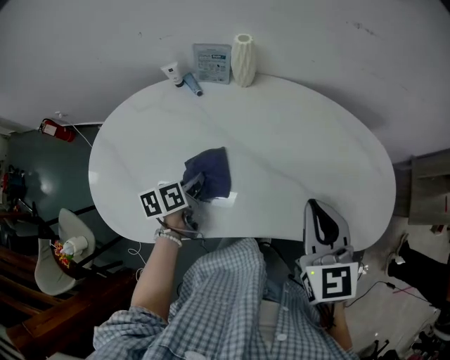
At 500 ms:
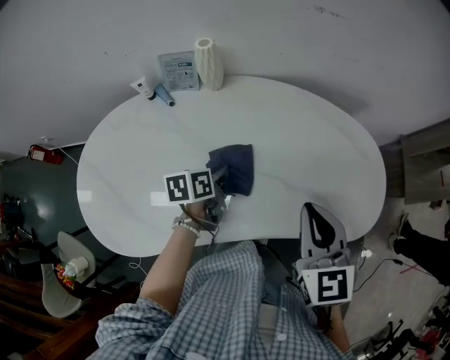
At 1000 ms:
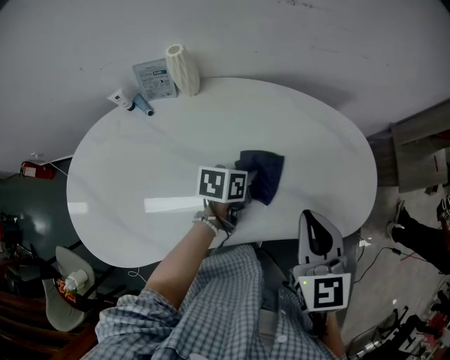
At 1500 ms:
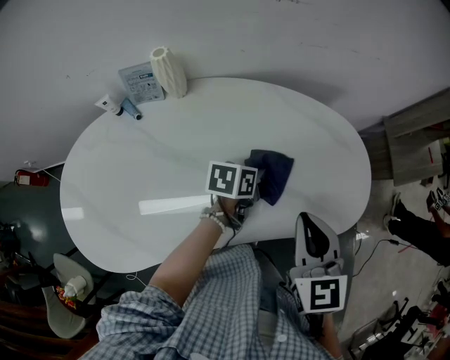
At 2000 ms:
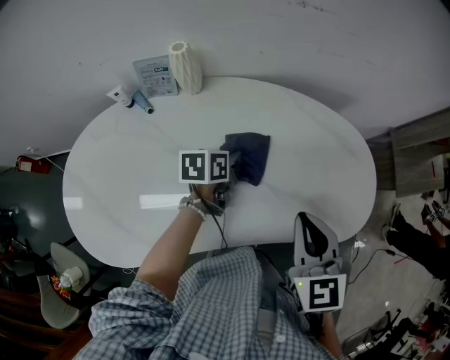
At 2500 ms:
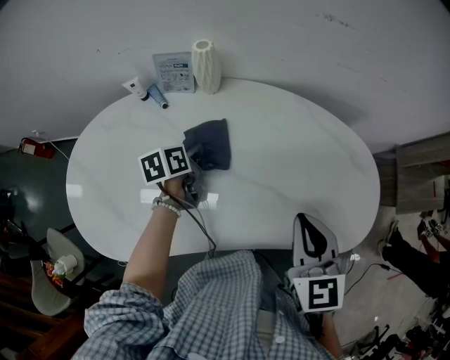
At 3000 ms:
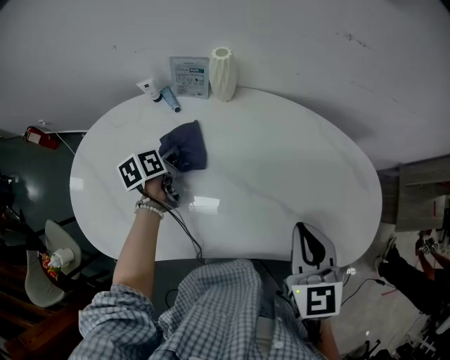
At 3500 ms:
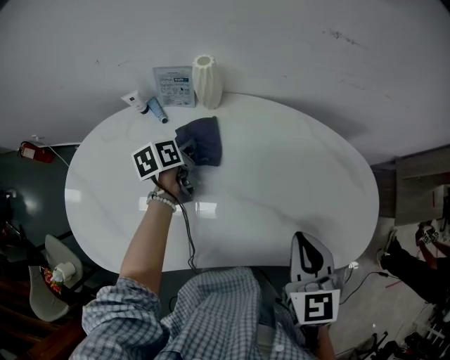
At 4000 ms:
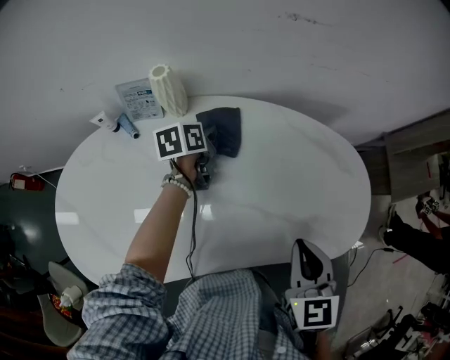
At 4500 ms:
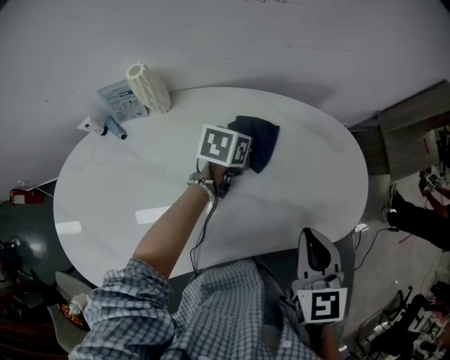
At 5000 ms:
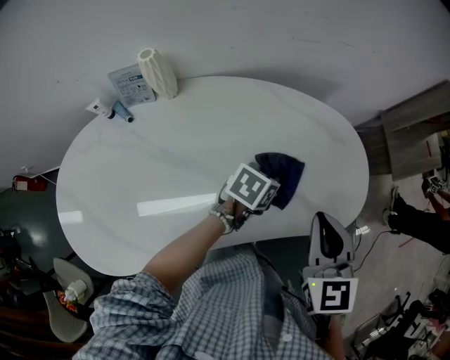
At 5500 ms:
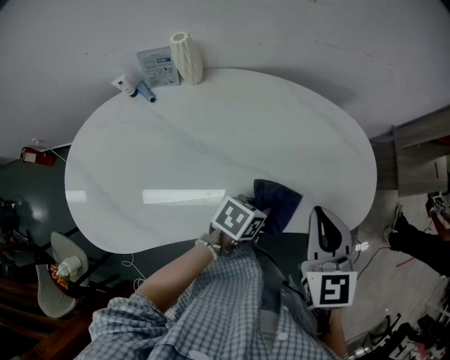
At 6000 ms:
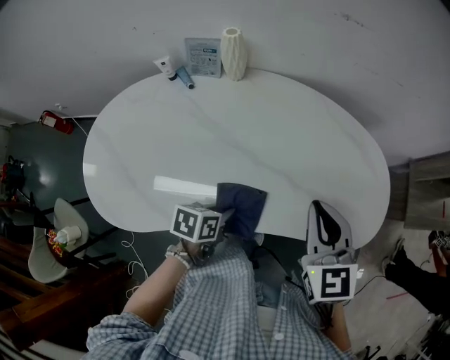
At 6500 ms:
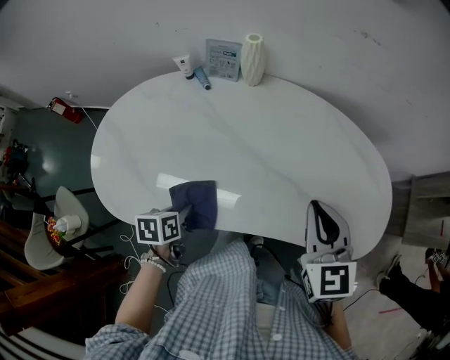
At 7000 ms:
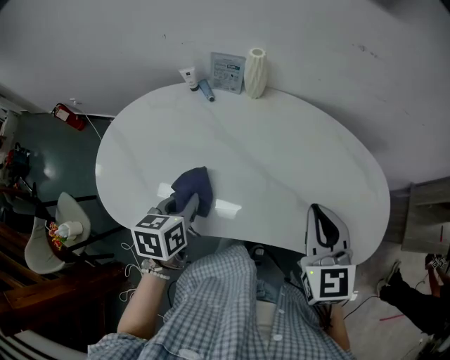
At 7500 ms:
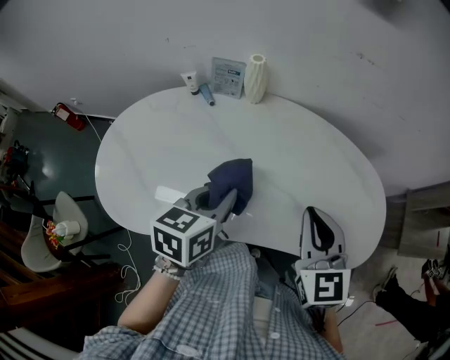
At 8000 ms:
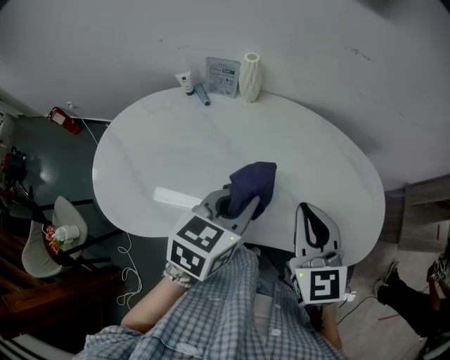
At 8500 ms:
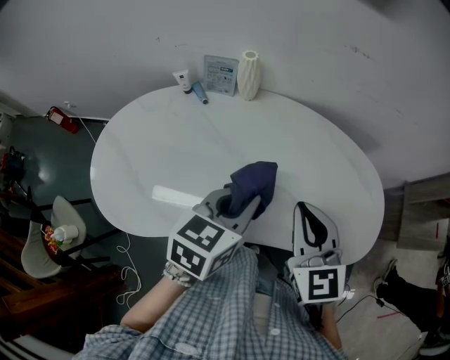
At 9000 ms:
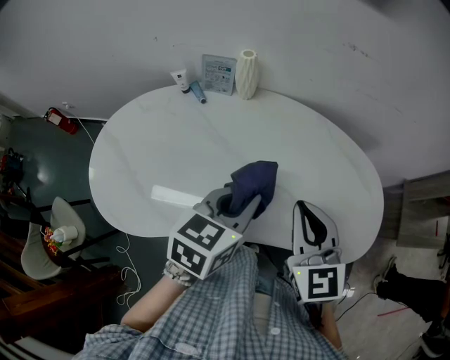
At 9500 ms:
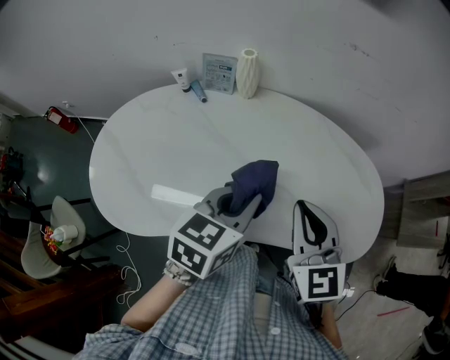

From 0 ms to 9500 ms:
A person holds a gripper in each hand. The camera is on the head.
From 0 ms to 2000 ms: The left gripper moves approximately 25 cm, and changes its angle by some 30 degrees. Meanwhile the right gripper moves about 5 cm.
From 2000 ms to 4000 ms: The left gripper goes some 15 cm forward, and moves about 25 cm to the left and comes back.
From 4000 ms to 5500 ms: The left gripper travels to the right and backward by some 35 cm, and changes its angle by approximately 40 degrees.
From 5500 ms to 7500 ms: The right gripper moves approximately 10 cm. Meanwhile the left gripper shifts by approximately 25 cm, and swivels roughly 50 degrees.
From 7500 ms to 9500 ms: The left gripper is displaced to the right by approximately 5 cm.

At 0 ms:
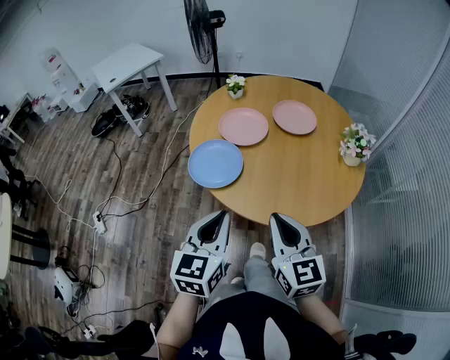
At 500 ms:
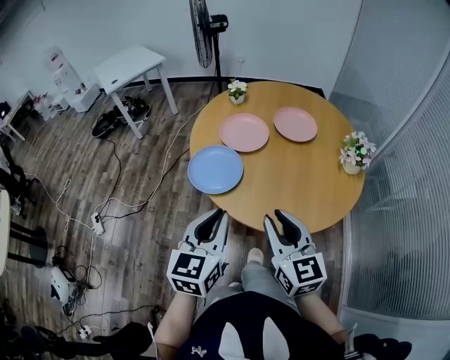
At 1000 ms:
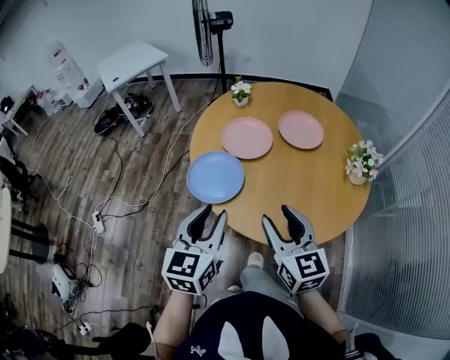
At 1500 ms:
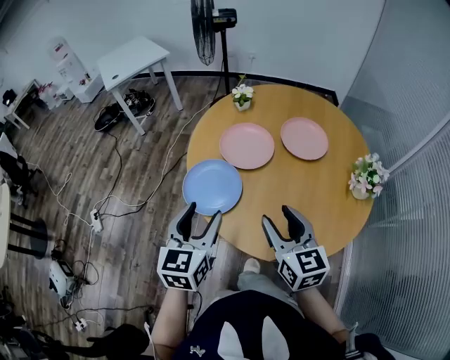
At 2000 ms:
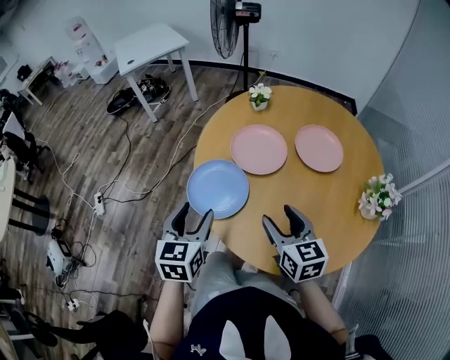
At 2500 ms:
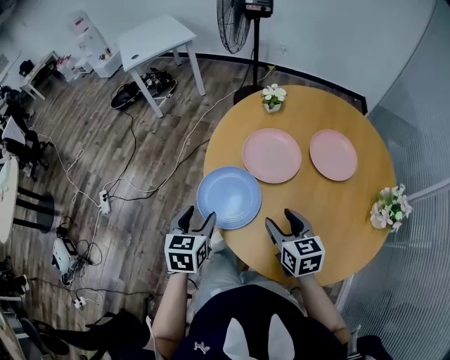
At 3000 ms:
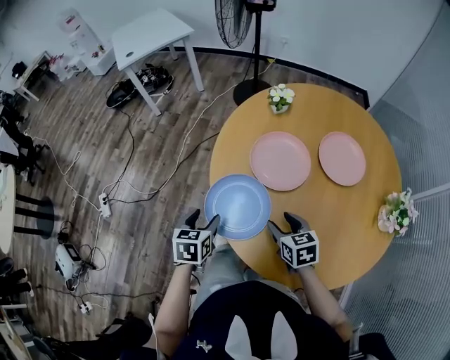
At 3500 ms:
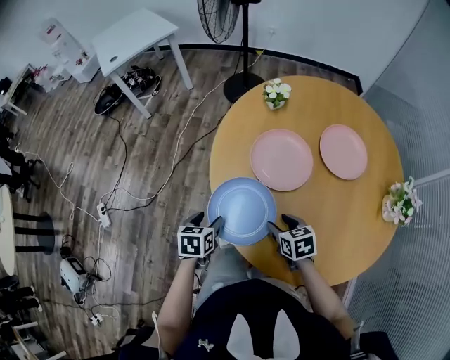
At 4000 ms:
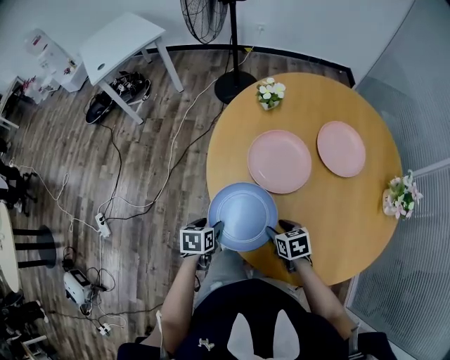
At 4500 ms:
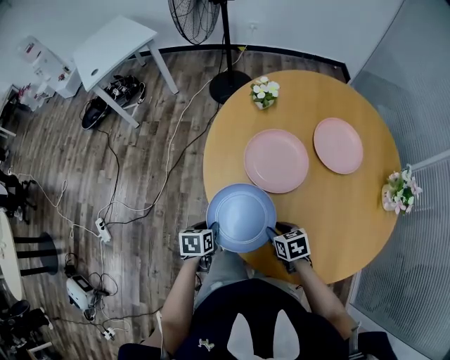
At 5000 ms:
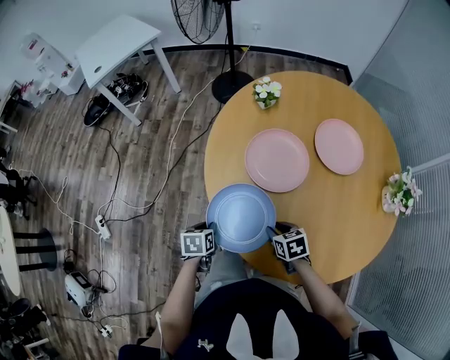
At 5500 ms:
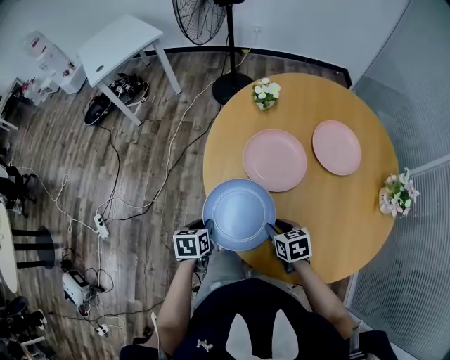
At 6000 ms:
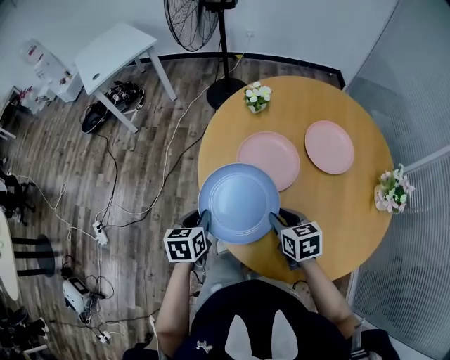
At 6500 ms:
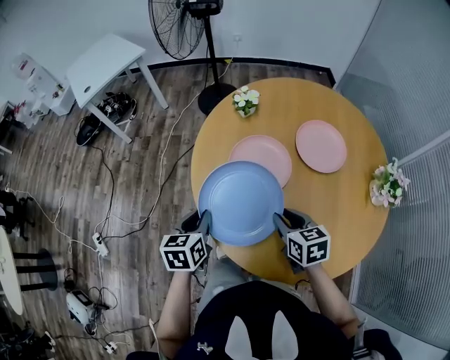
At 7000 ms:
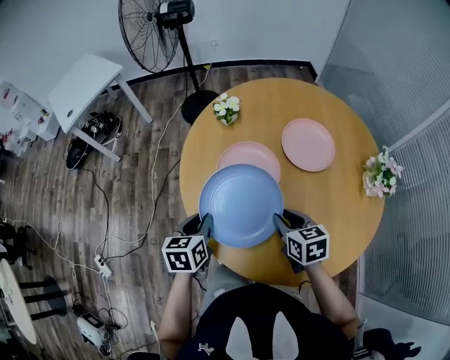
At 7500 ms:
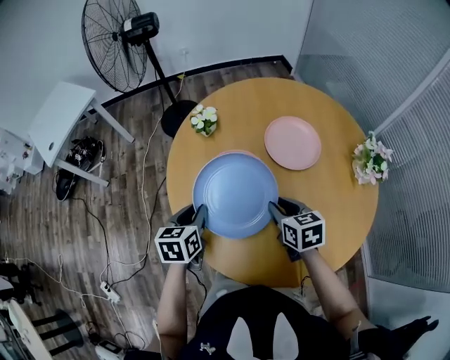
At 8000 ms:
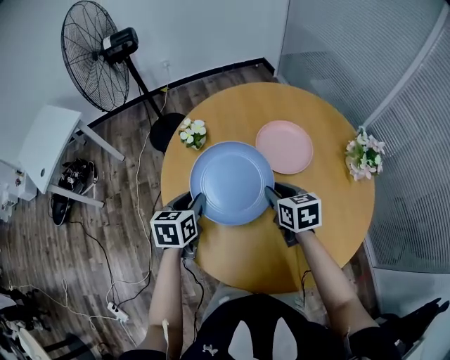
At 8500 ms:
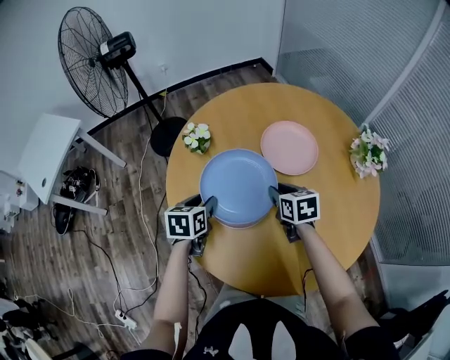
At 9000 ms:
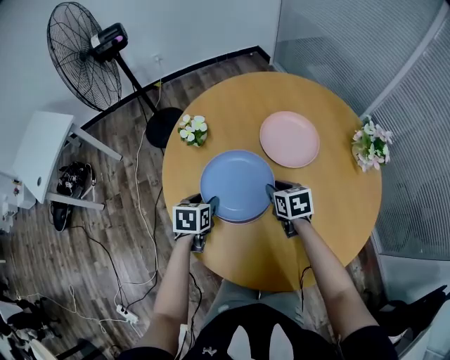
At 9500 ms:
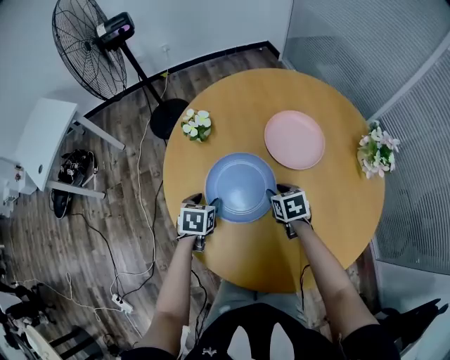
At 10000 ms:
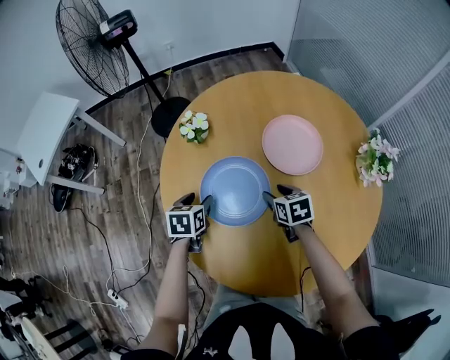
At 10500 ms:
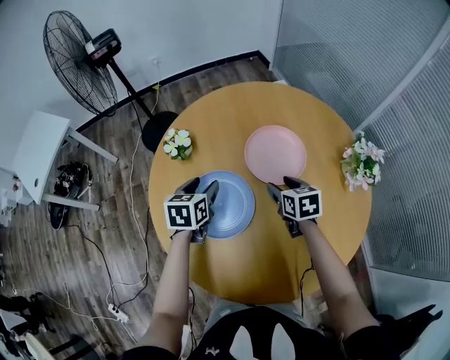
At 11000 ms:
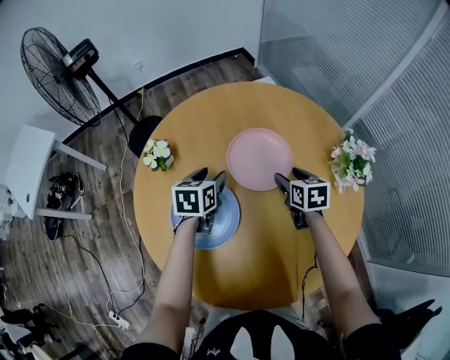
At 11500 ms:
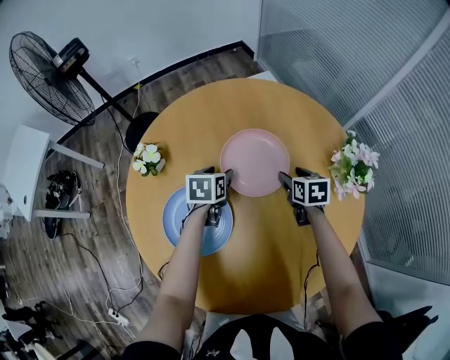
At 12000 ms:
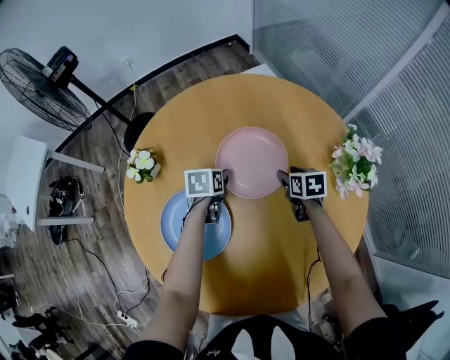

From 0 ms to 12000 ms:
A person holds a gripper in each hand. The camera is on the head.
From 0 ms to 2000 ms: Both grippers travel together forward, roughly 20 cm. The right gripper swivels some 20 degrees, and opens its fingers. Meanwhile the left gripper swivels approximately 20 degrees, and opens up.
From 2000 ms to 4000 ms: The right gripper is displaced downward by about 20 cm, and tilts its fingers some 30 degrees downward. Meanwhile the left gripper heads downward and forward, covering roughly 25 cm, and points its fingers approximately 30 degrees further downward.
From 4000 ms to 6000 ms: Both grippers travel together upward, some 10 cm. The left gripper closes its fingers, while the right gripper closes.
From 6000 ms to 8000 ms: The left gripper moves approximately 25 cm, and changes its angle by roughly 30 degrees; the right gripper shifts by about 15 cm, and rotates some 30 degrees.
From 8000 ms to 10000 ms: Both grippers travel together downward, about 10 cm. The left gripper opens. The right gripper opens.
From 10000 ms to 12000 ms: The two grippers go some 25 cm to the right and forward.

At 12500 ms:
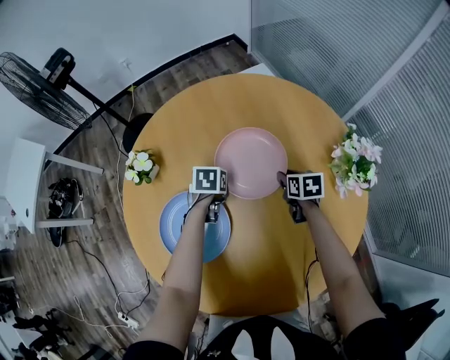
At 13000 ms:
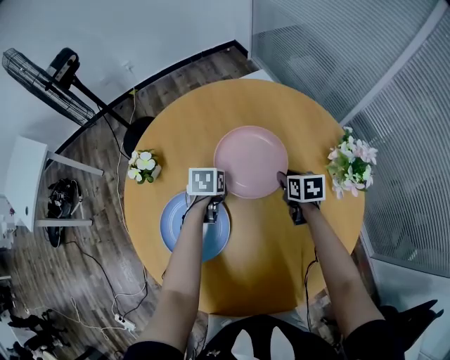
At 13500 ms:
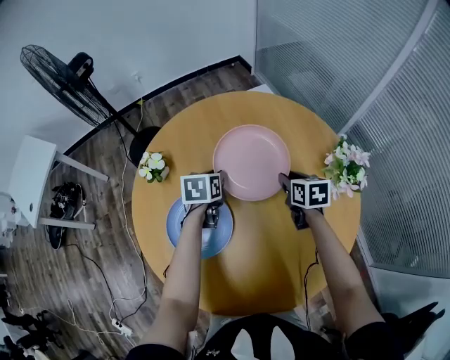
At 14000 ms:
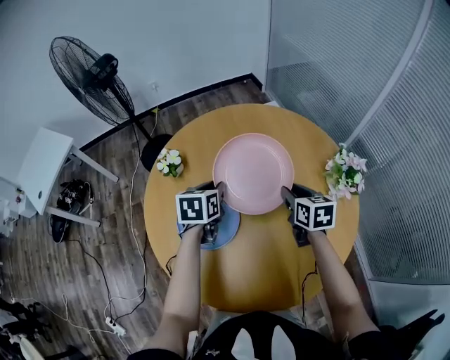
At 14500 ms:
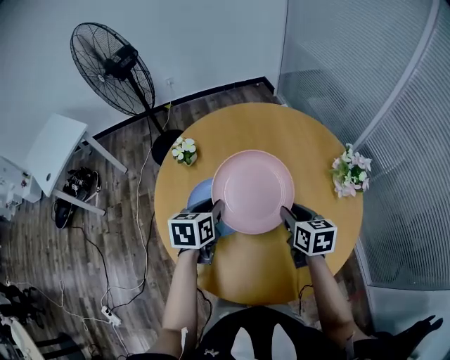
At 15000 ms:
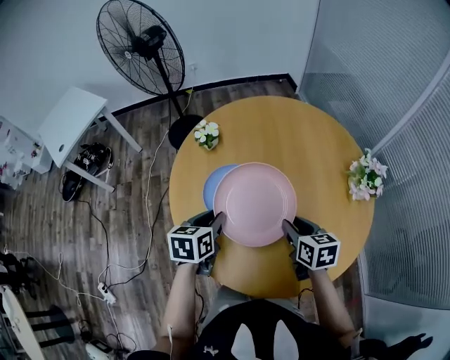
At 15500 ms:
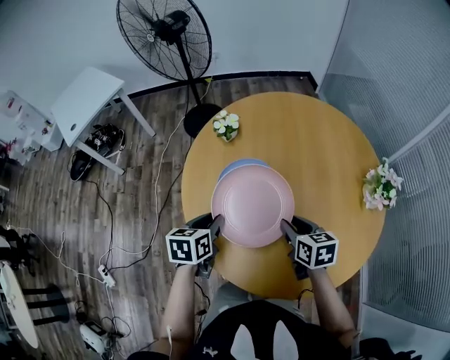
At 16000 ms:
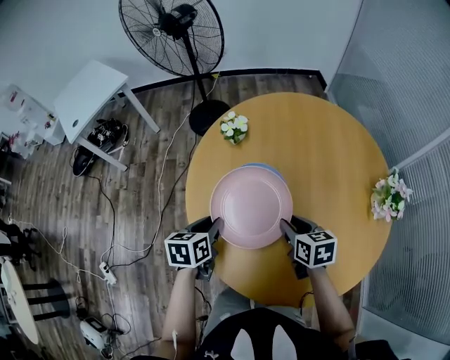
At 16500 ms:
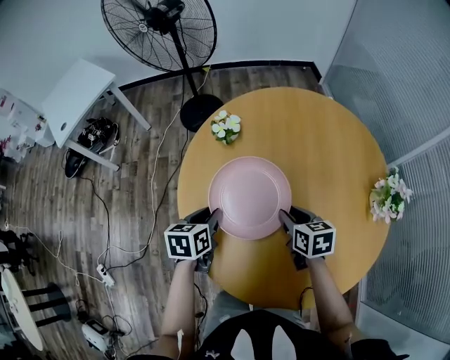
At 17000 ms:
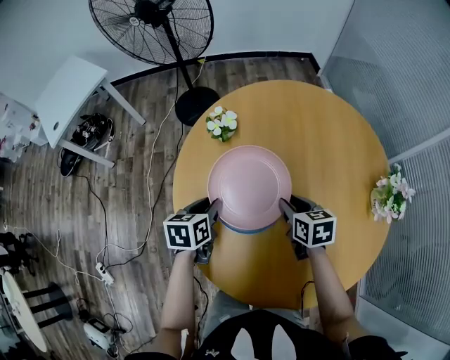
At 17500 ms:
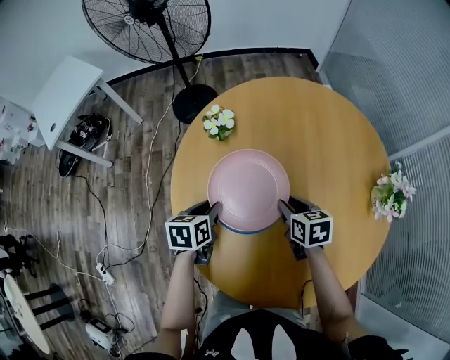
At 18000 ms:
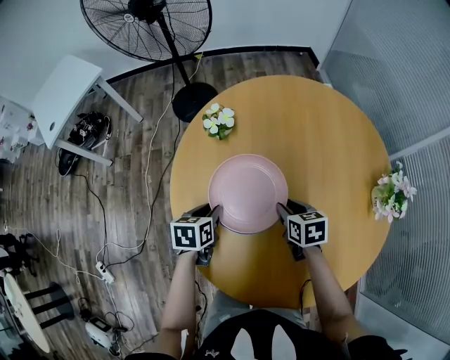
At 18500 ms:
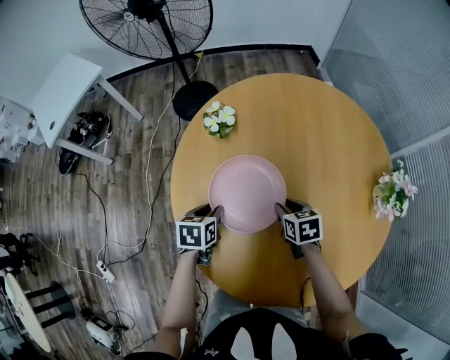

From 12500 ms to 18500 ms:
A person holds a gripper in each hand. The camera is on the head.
From 12500 ms to 14500 ms: The right gripper travels backward, upward and to the left by approximately 25 cm, and changes its angle by roughly 20 degrees; the left gripper goes about 30 cm upward and backward, and swivels about 30 degrees.
From 14500 ms to 16500 ms: Both grippers move to the left and downward, approximately 15 cm.
From 16500 ms to 18500 ms: The two grippers go roughly 5 cm downward.
